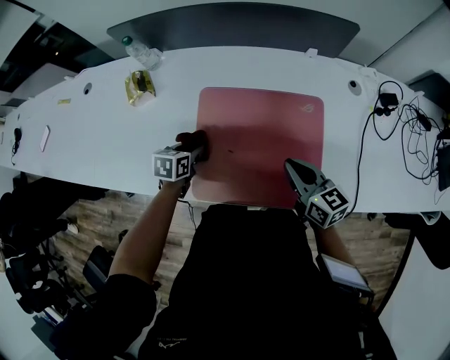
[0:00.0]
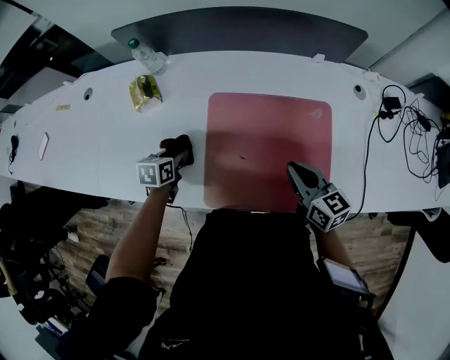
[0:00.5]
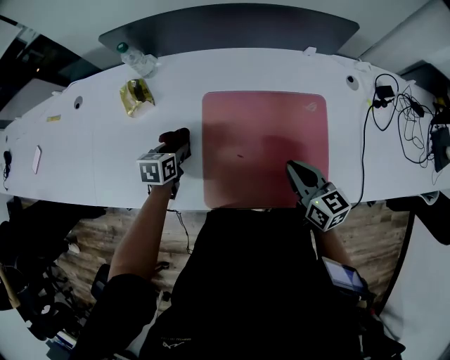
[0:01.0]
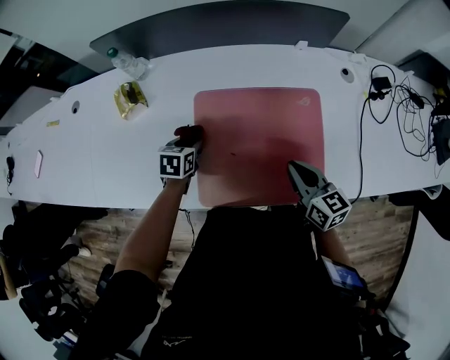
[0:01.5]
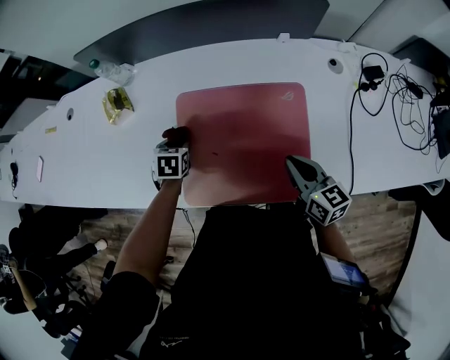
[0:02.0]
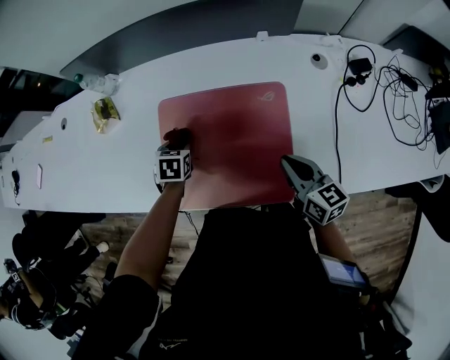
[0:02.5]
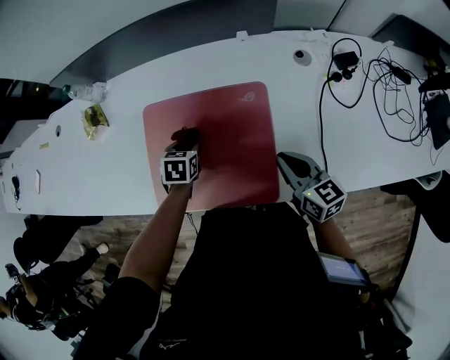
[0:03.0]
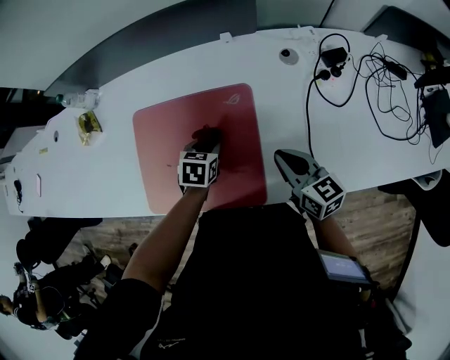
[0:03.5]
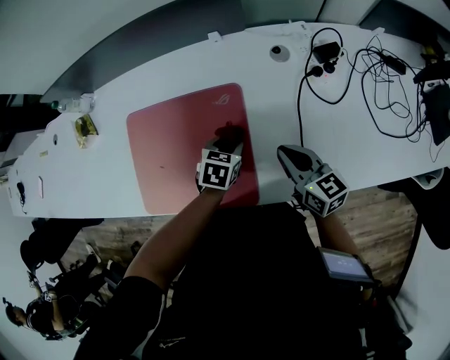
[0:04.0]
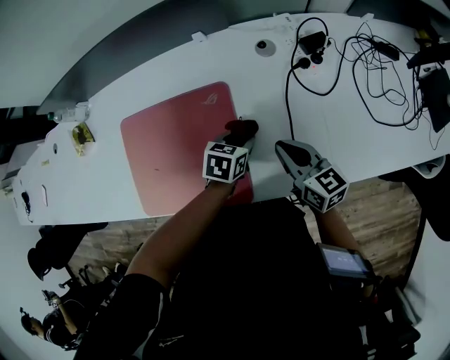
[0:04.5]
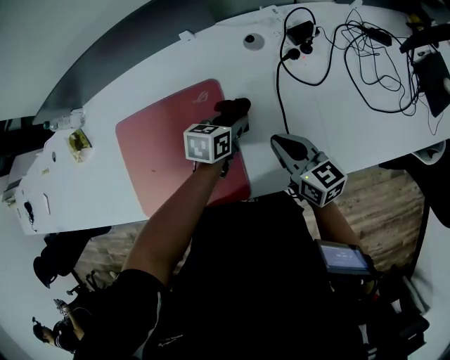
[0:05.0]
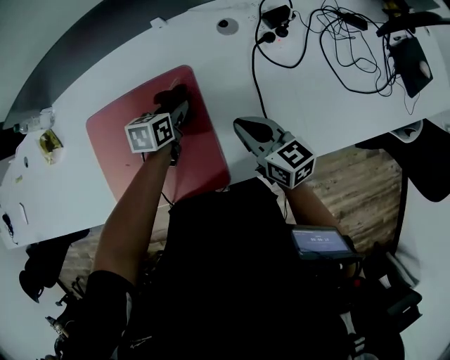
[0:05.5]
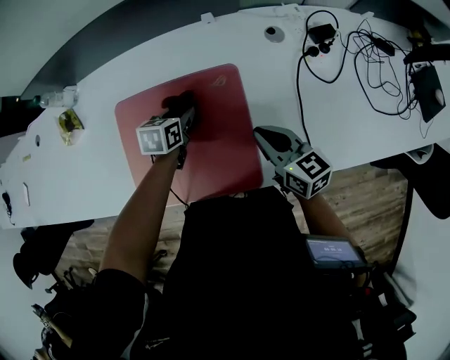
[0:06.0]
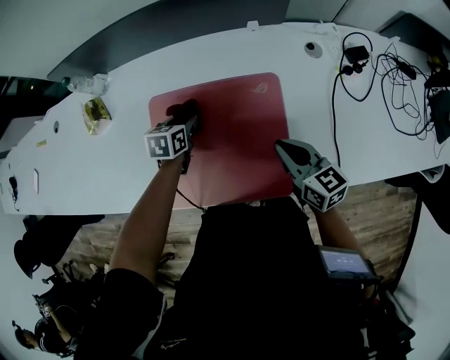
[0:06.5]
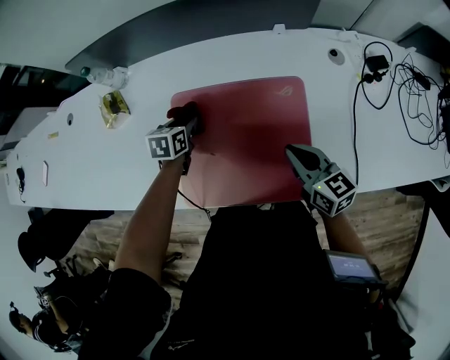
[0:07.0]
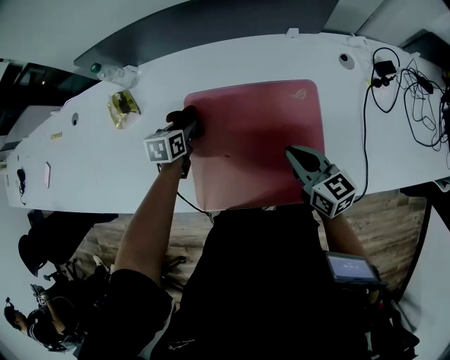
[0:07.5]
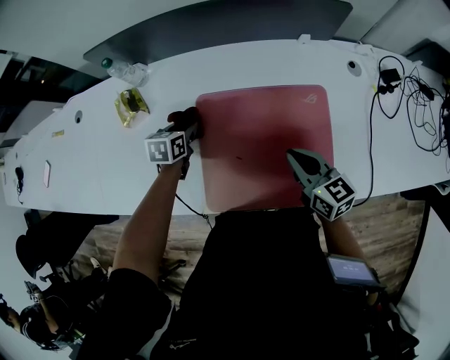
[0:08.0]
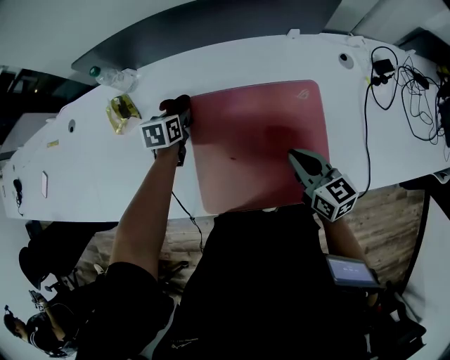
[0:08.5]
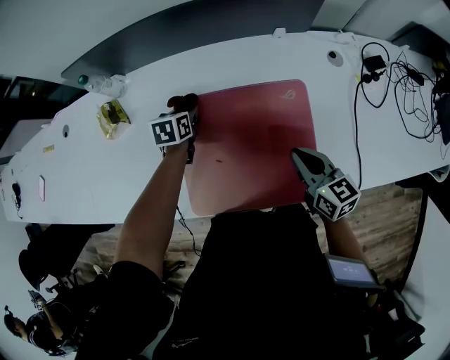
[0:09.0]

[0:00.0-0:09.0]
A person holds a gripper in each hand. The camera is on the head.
0:00.0 to 0:02.0: The left gripper reaches about 10 cm to the left, then returns, and swivels about 20 degrees.
0:02.0 to 0:04.5: The right gripper goes some 20 cm to the right. The left gripper goes approximately 40 cm to the right, and changes its angle by roughly 30 degrees.
0:04.5 to 0:07.0: The left gripper is displaced to the left by approximately 40 cm; the right gripper goes some 20 cm to the left.
0:07.0 to 0:09.0: The right gripper goes to the left and returns, some 10 cm each way. Meanwhile the left gripper travels forward by some 5 cm, and goes to the left and returns, some 10 cm each way.

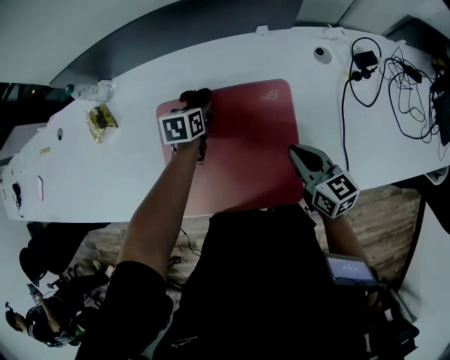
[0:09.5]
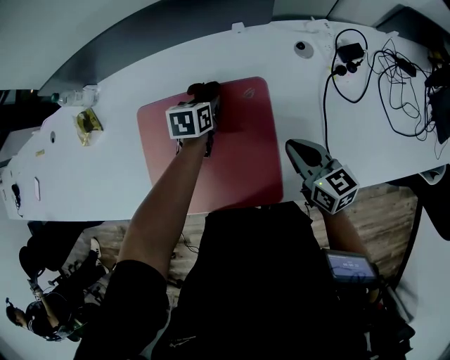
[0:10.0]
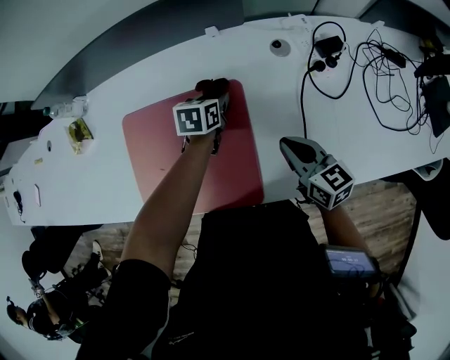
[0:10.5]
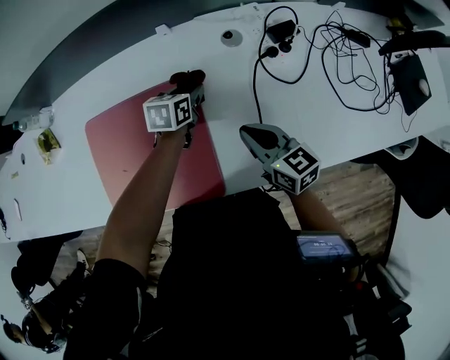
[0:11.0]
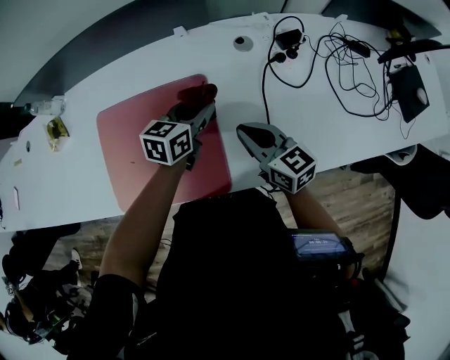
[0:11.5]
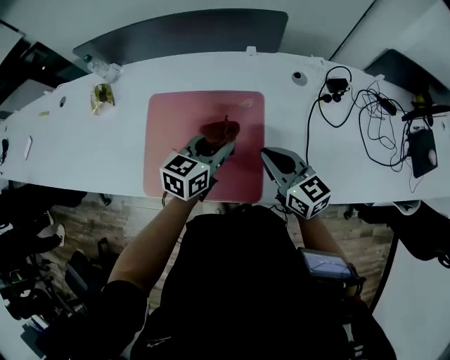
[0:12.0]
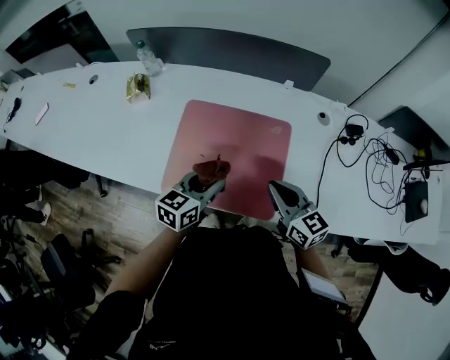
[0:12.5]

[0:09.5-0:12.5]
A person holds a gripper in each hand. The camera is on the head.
0:09.5 to 0:11.0: The right gripper is displaced to the right by approximately 15 cm, while the left gripper heads to the right, covering some 25 cm.
0:11.0 to 0:12.5: The right gripper travels to the left, backward and upward by approximately 20 cm, and swivels roughly 20 degrees, while the left gripper moves backward, to the left and upward, approximately 35 cm, and changes its angle by about 30 degrees.

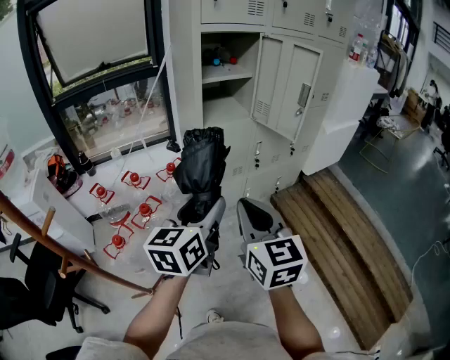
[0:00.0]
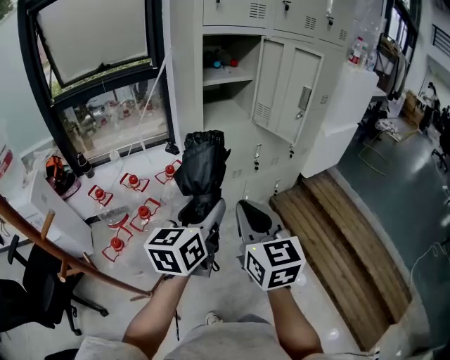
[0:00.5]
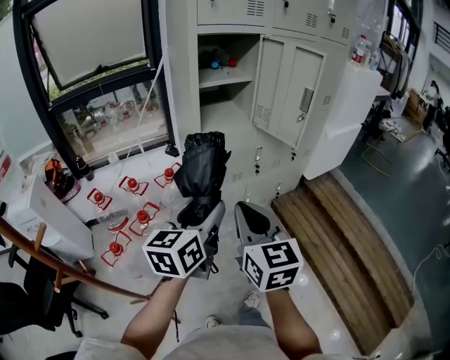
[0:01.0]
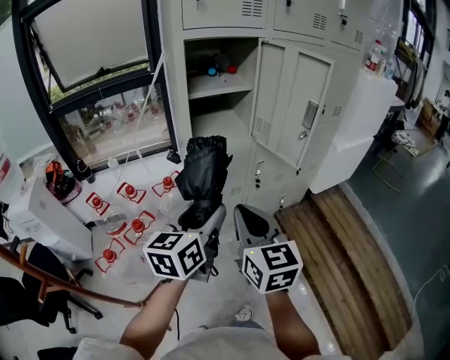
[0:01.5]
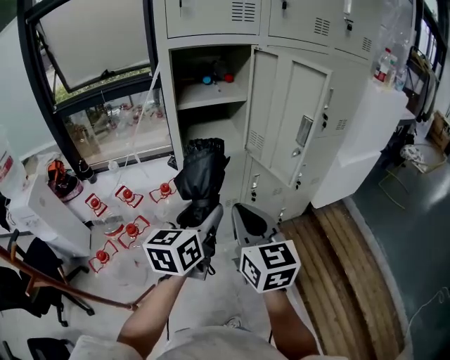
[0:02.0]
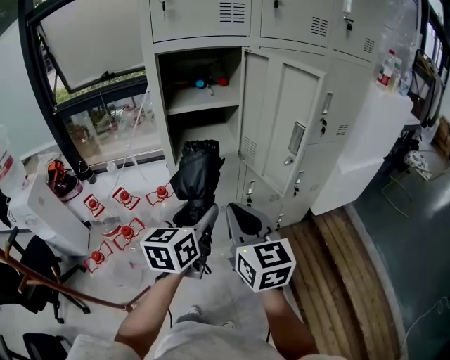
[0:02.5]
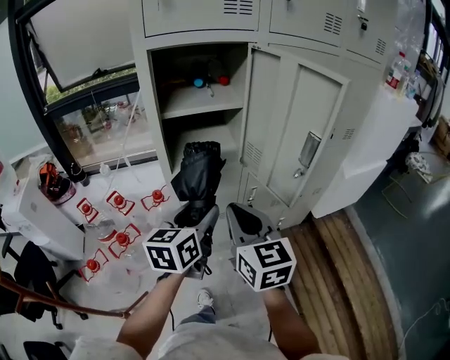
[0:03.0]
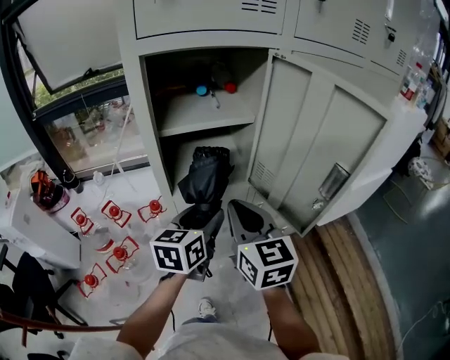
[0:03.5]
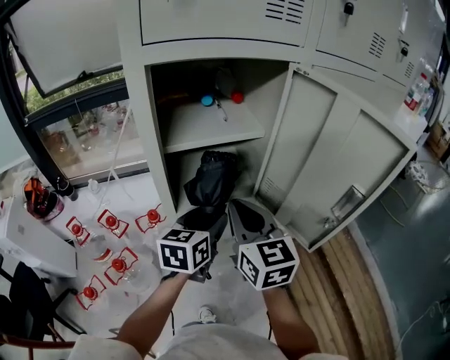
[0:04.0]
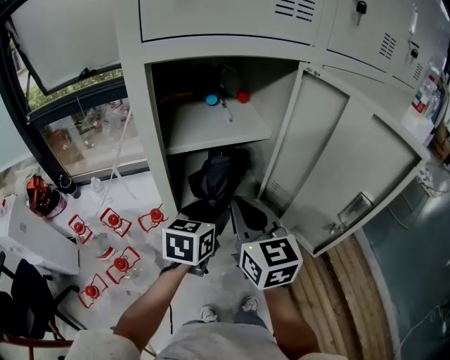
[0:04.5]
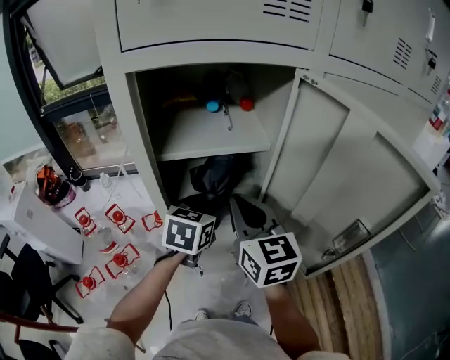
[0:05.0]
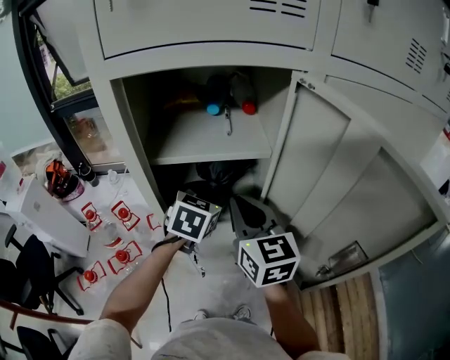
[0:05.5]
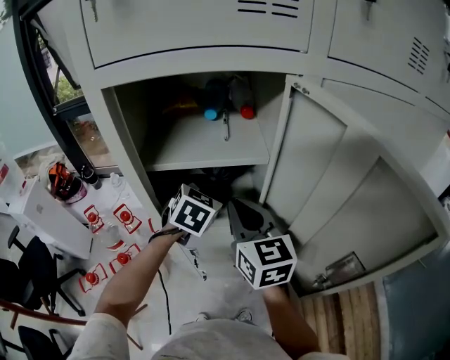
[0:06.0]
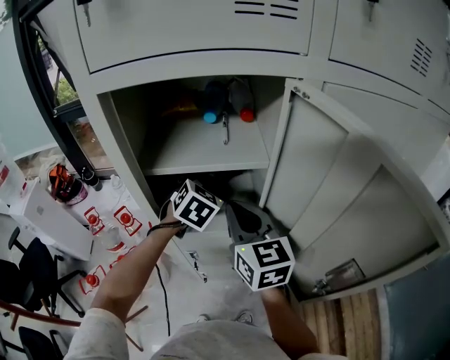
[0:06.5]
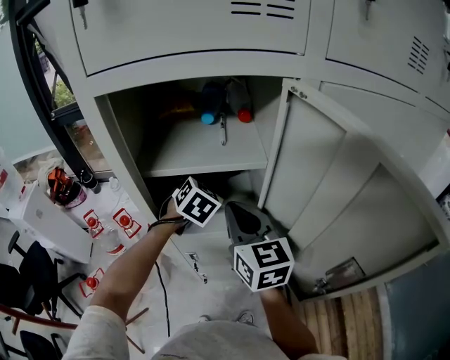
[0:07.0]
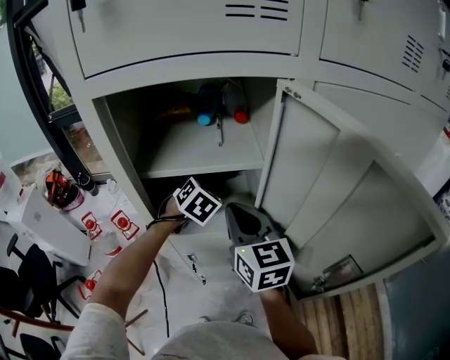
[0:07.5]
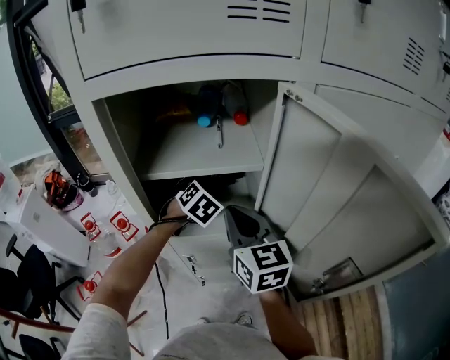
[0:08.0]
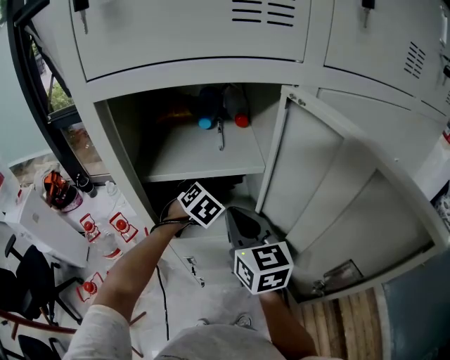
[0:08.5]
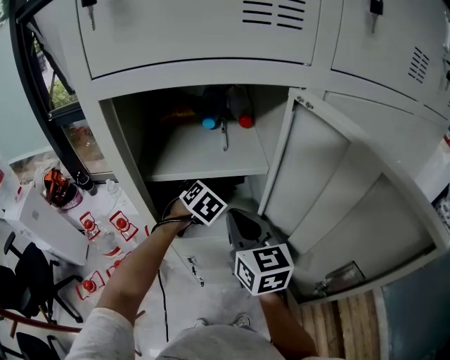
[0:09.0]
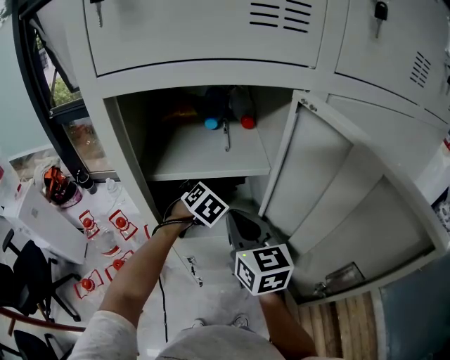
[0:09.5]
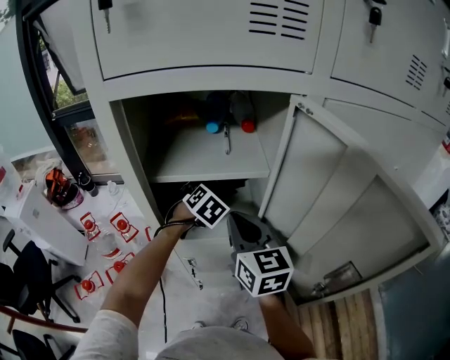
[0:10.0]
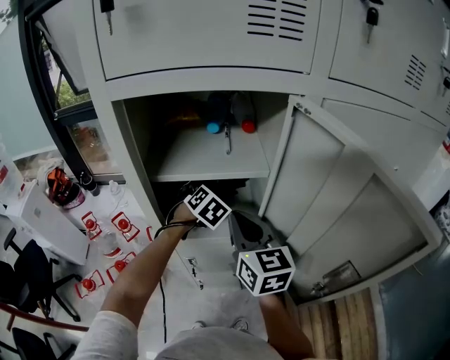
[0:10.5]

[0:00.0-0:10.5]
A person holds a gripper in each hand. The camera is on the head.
0:00.0 to 0:02.0: The two grippers go some 20 cm forward and to the right.
0:02.0 to 0:04.0: Both grippers move forward, approximately 25 cm.
0:04.0 to 0:06.5: The right gripper travels forward by some 10 cm. Meanwhile the left gripper shifts approximately 20 cm forward, and rotates about 40 degrees.
0:06.5 to 0:08.5: The left gripper goes approximately 5 cm downward.
0:08.5 to 0:10.5: Both grippers stay about where they are.

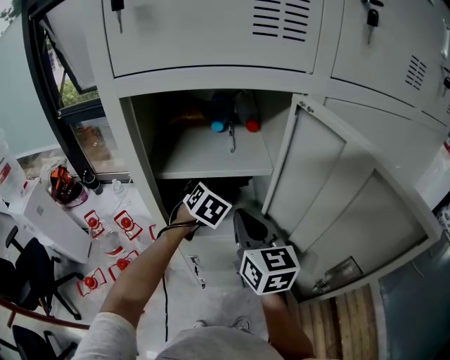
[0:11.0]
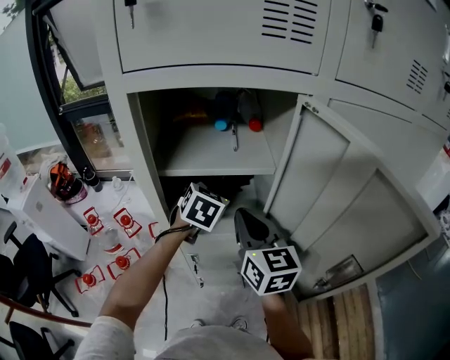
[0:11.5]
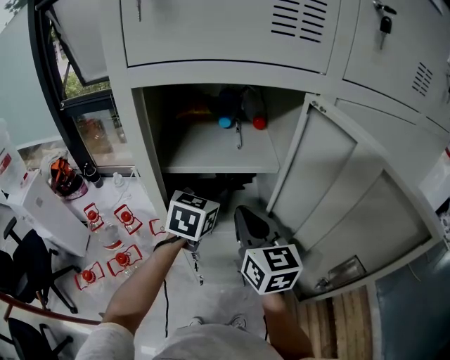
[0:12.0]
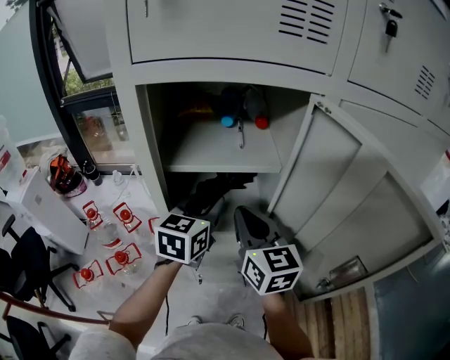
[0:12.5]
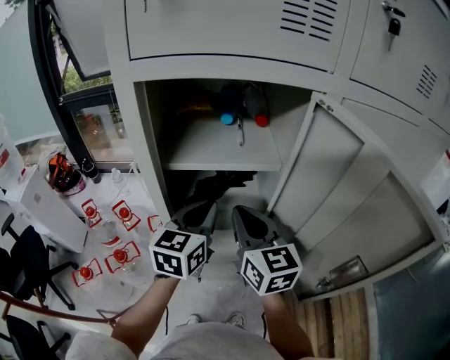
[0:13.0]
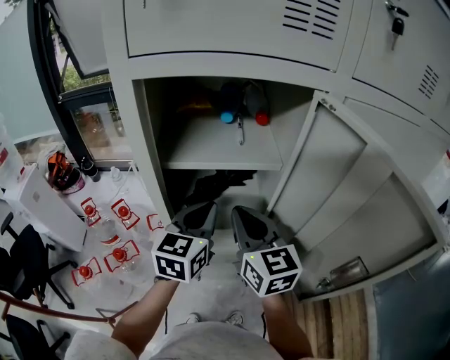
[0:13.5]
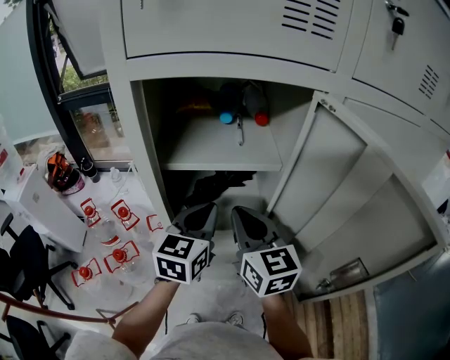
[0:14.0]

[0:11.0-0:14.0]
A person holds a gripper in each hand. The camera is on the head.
0:11.0 to 0:12.5: The left gripper moves backward and upward, some 10 cm, rotates about 40 degrees, and closes its fingers.
0:12.5 to 0:14.0: The left gripper closes.

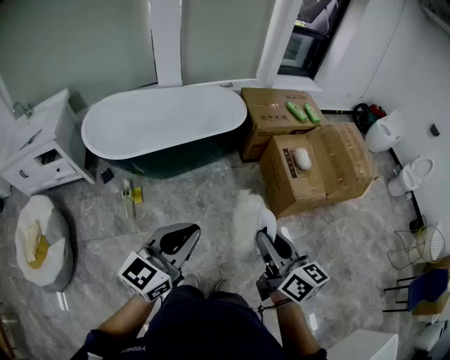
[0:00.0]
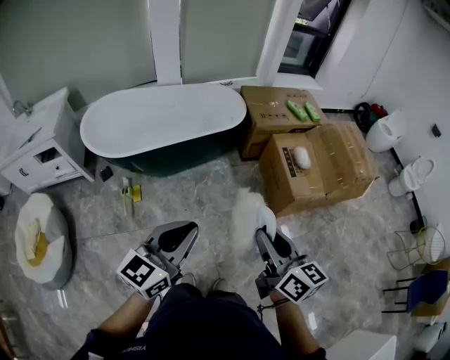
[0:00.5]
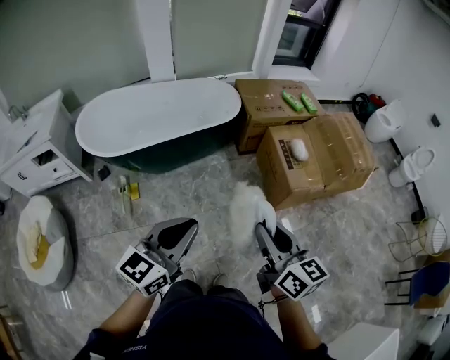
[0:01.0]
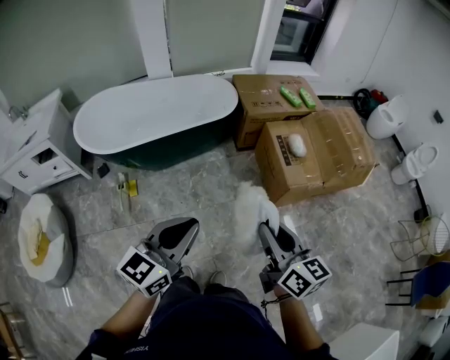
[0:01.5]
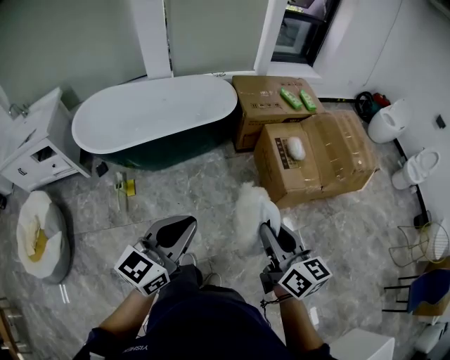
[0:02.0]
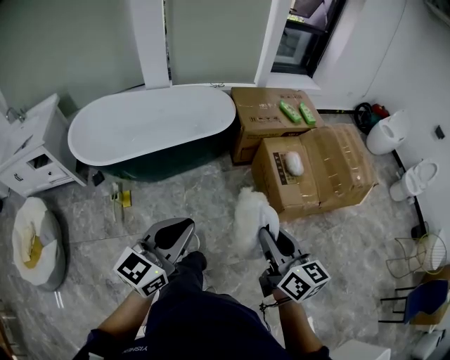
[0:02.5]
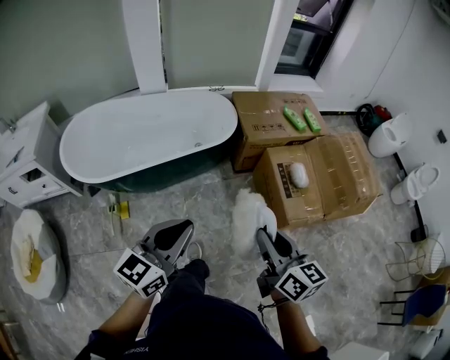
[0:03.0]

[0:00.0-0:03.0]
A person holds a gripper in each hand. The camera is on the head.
0:00.0 to 0:01.5: Both grippers move to the right, about 10 cm.
0:01.5 to 0:03.0: The grippers both shift forward by roughly 20 cm.
